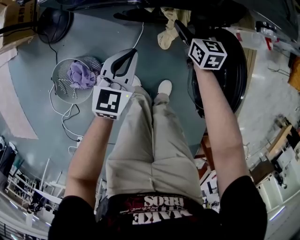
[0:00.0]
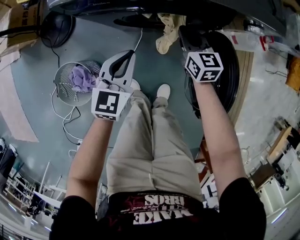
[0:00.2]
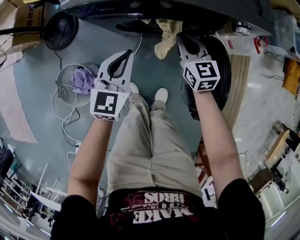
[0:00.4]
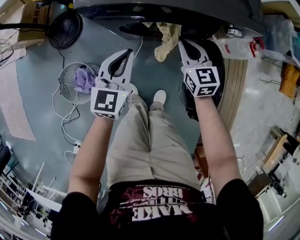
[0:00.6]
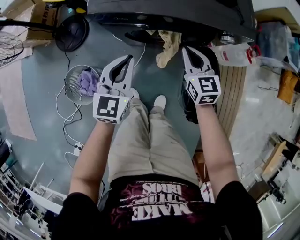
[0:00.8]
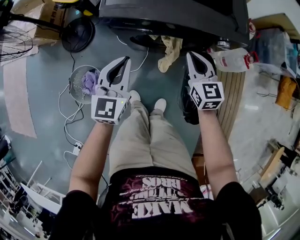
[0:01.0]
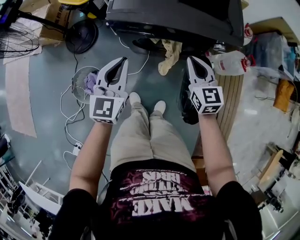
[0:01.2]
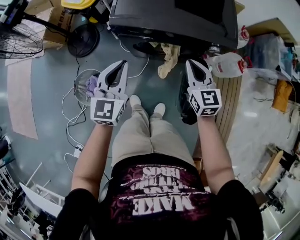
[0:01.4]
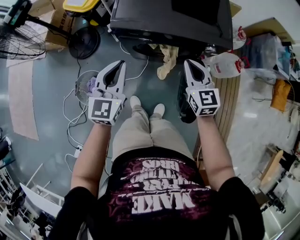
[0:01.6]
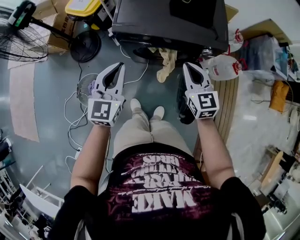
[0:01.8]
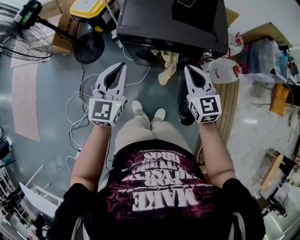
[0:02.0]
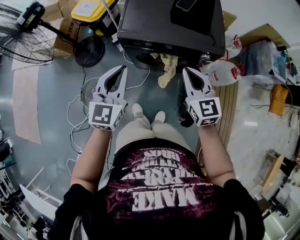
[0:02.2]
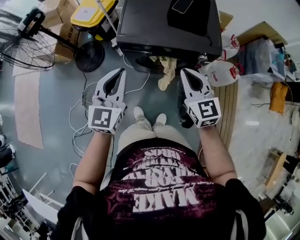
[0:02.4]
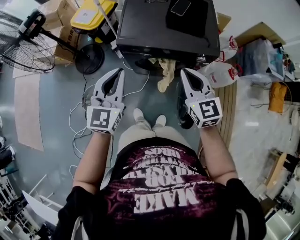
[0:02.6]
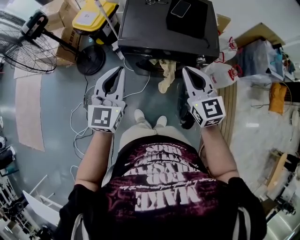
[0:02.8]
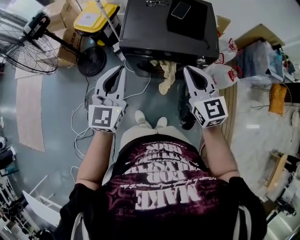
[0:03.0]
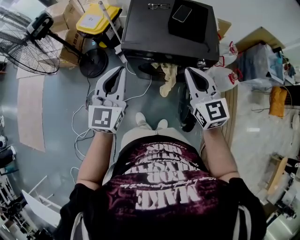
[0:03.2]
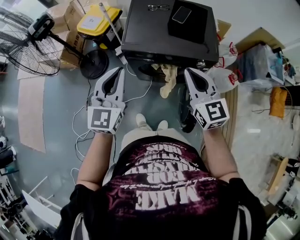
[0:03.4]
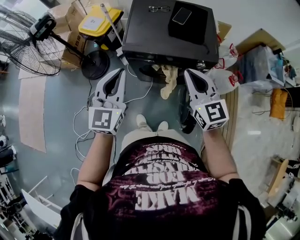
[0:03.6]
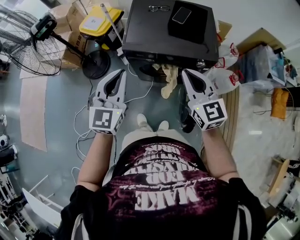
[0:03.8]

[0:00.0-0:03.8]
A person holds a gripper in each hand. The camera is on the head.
0:00.0 to 0:01.2: Both grippers travel together upward, some 25 cm. The right gripper changes its angle by some 20 degrees, and closes. Meanwhile the left gripper turns by approximately 20 degrees.
0:01.2 to 0:02.6: Both grippers move upward, some 20 cm.
0:02.6 to 0:03.8: The right gripper travels upward by some 5 cm.

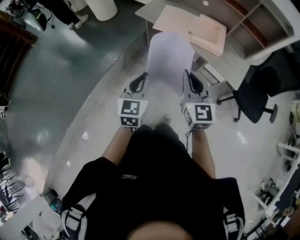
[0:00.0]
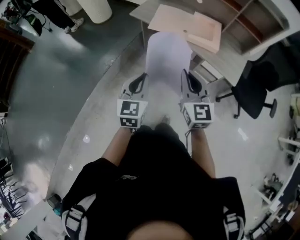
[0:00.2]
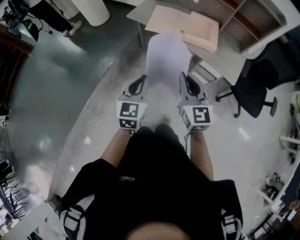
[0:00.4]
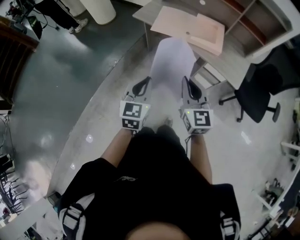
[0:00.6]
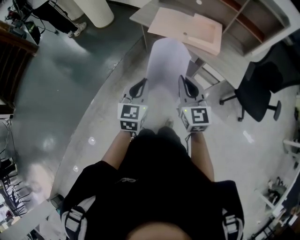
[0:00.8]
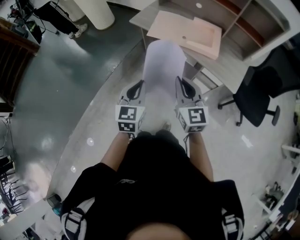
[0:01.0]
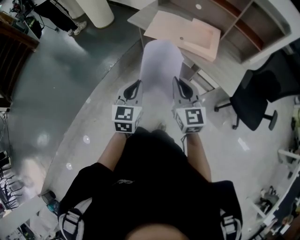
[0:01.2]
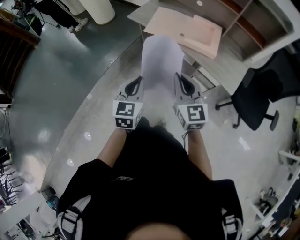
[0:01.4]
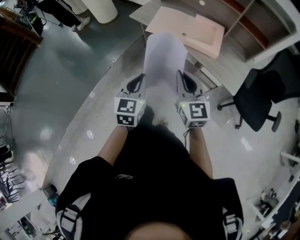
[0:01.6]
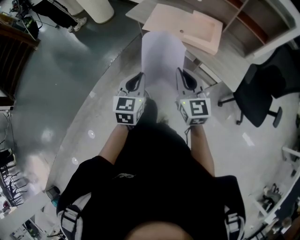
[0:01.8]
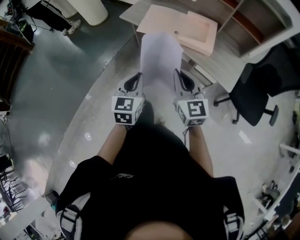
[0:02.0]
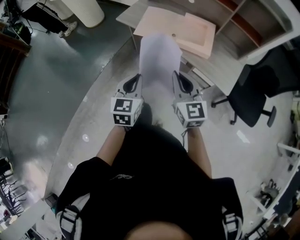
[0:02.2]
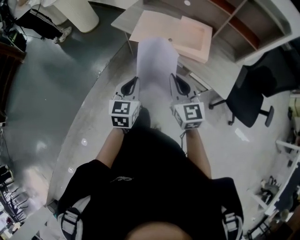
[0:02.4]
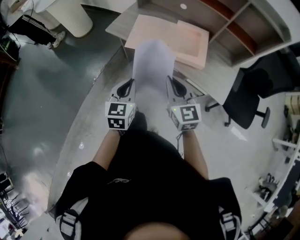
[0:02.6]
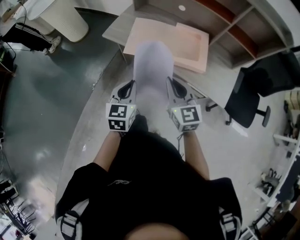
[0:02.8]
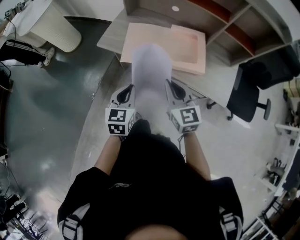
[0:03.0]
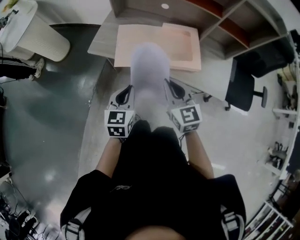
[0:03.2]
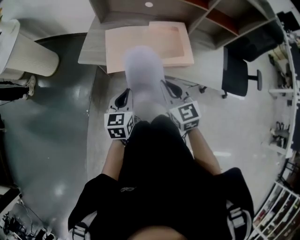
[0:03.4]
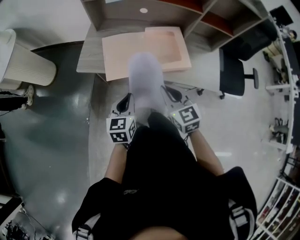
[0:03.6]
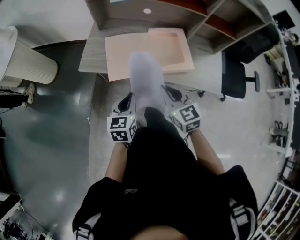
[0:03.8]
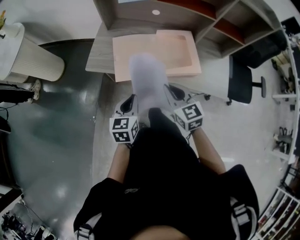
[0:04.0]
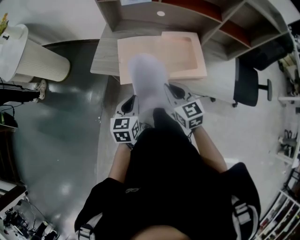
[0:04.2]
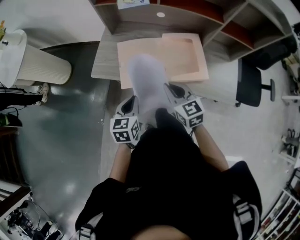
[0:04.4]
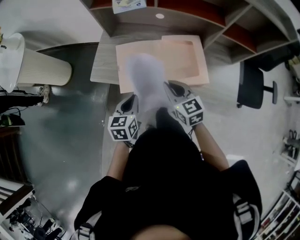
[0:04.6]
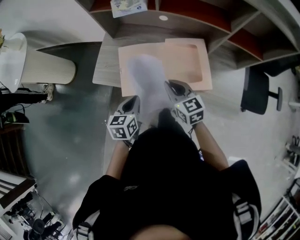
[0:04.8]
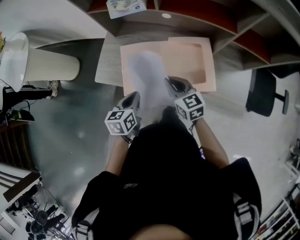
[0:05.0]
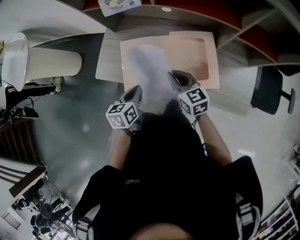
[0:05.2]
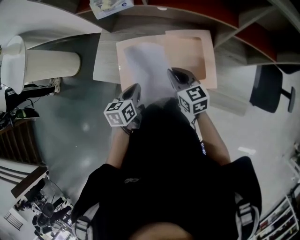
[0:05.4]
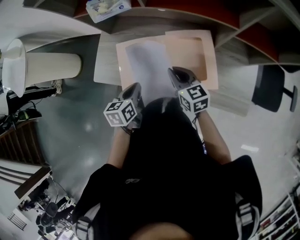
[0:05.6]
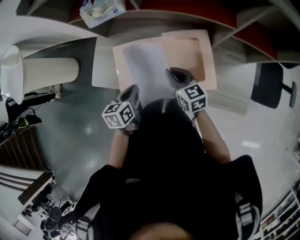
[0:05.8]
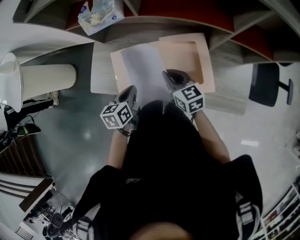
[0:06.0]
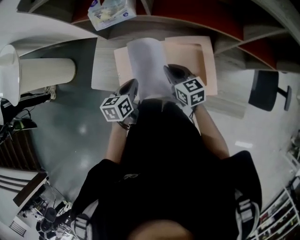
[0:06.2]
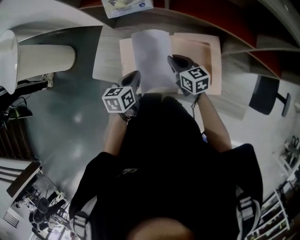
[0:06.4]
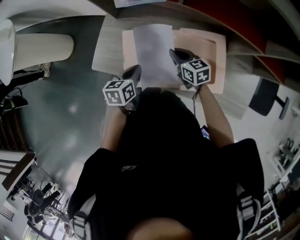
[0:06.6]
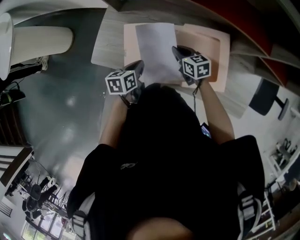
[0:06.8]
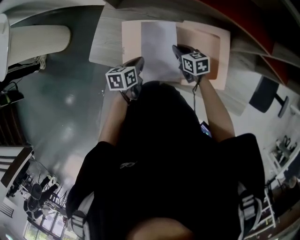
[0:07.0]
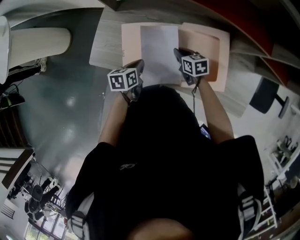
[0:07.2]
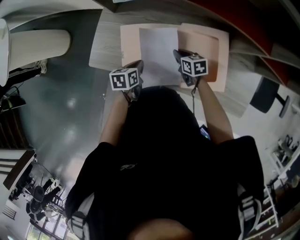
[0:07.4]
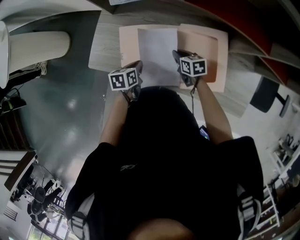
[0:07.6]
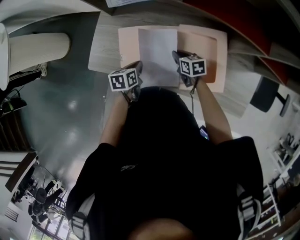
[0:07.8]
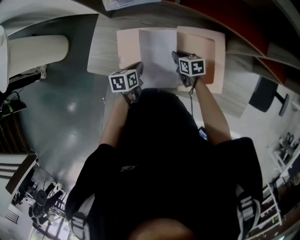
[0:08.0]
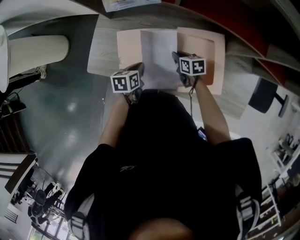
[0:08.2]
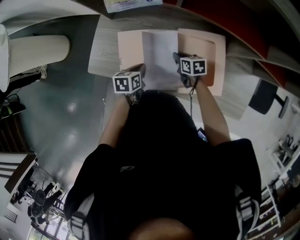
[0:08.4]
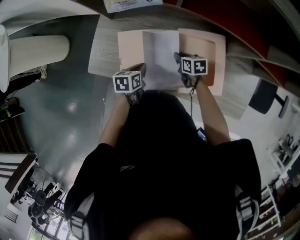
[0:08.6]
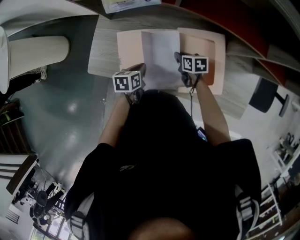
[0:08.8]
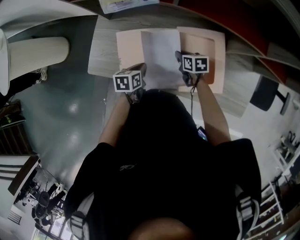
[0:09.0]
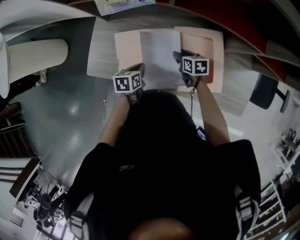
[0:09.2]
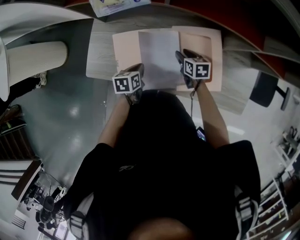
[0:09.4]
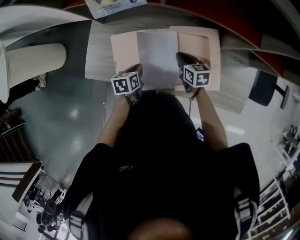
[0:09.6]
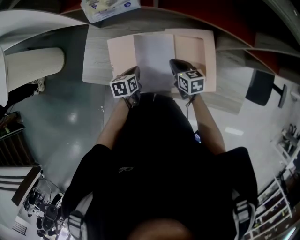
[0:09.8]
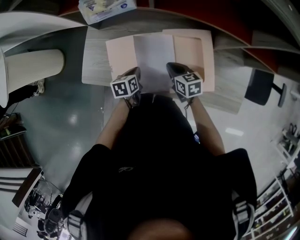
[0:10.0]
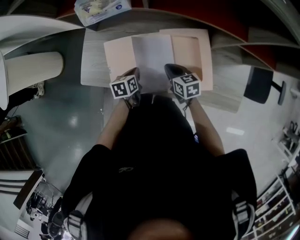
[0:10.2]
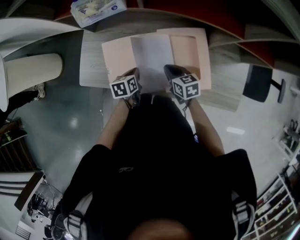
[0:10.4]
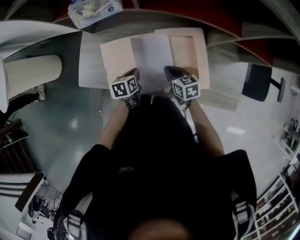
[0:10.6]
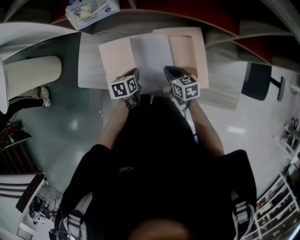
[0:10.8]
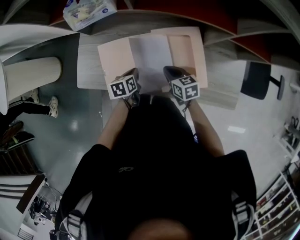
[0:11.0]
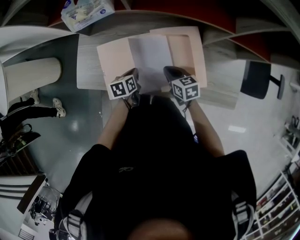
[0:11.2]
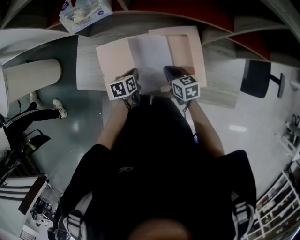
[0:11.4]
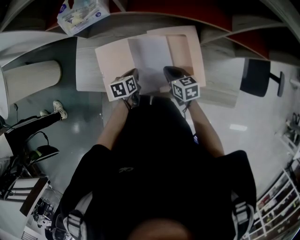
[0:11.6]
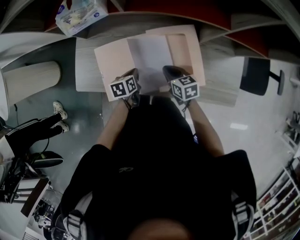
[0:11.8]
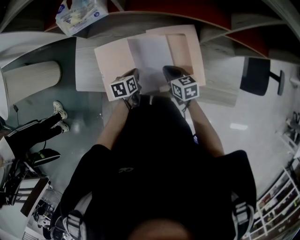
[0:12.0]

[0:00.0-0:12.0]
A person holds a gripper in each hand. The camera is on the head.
0:00.0 to 0:01.6: The grippers both shift to the right by roughly 10 cm.
0:01.6 to 0:03.0: The two grippers go roughly 20 cm forward.
0:03.0 to 0:04.4: The left gripper moves forward, roughly 10 cm, while the right gripper travels forward and downward by some 15 cm.
0:04.4 to 0:06.0: The right gripper travels forward, downward and to the right by roughly 20 cm. The left gripper travels forward by approximately 15 cm.
0:06.0 to 0:07.6: Both grippers travel together downward, approximately 15 cm. The right gripper rotates roughly 30 degrees.
0:07.6 to 0:09.0: The grippers stay close to where they were, moving slightly.
0:09.0 to 0:10.4: The right gripper moves upward and backward, approximately 10 cm, and opens, then closes again.
0:10.4 to 0:12.0: There are only small adjustments of the grippers.

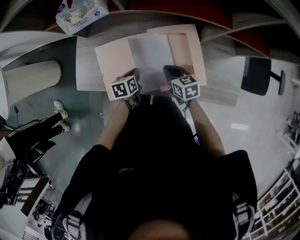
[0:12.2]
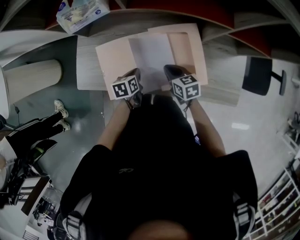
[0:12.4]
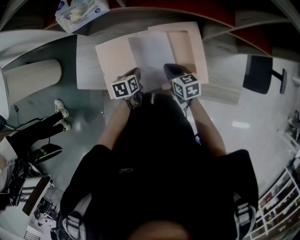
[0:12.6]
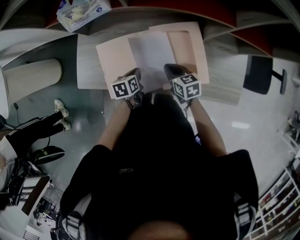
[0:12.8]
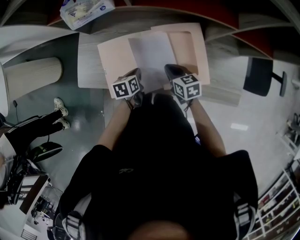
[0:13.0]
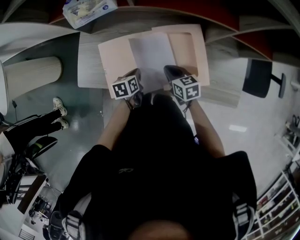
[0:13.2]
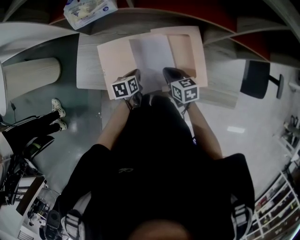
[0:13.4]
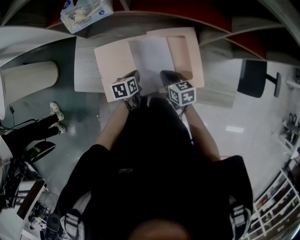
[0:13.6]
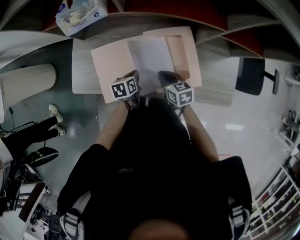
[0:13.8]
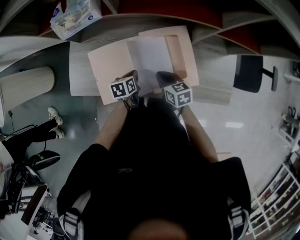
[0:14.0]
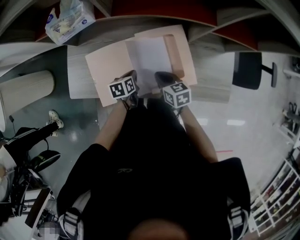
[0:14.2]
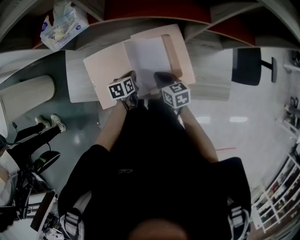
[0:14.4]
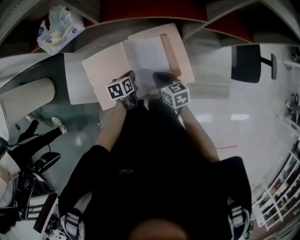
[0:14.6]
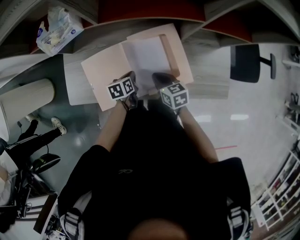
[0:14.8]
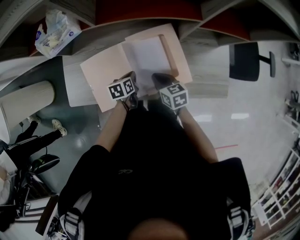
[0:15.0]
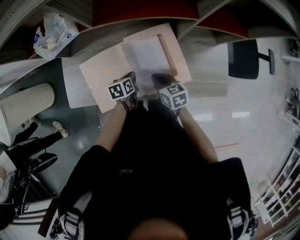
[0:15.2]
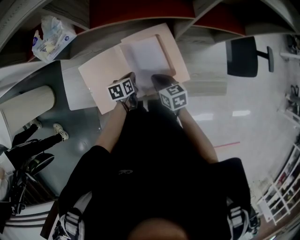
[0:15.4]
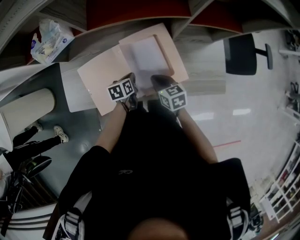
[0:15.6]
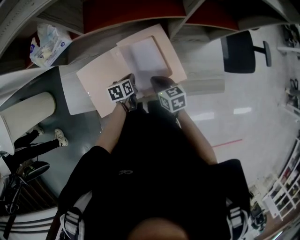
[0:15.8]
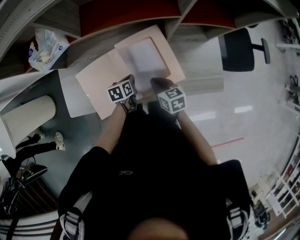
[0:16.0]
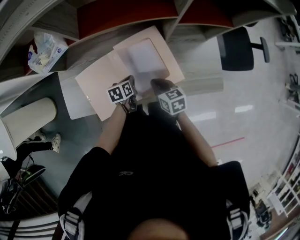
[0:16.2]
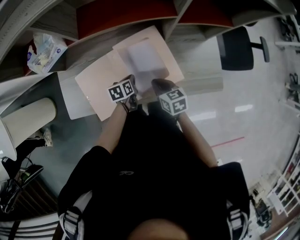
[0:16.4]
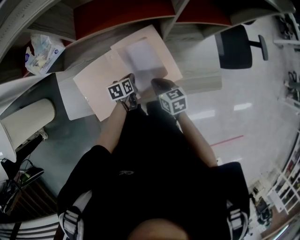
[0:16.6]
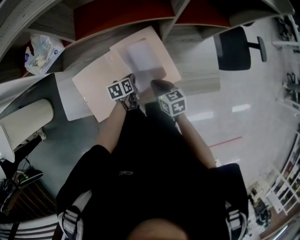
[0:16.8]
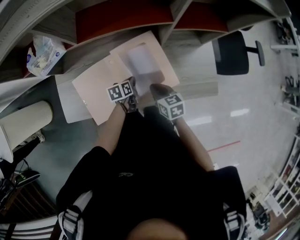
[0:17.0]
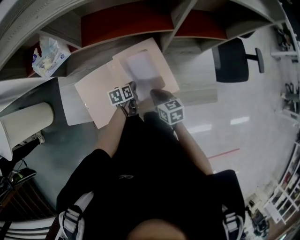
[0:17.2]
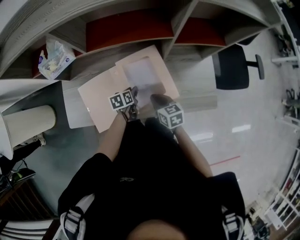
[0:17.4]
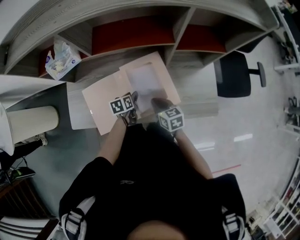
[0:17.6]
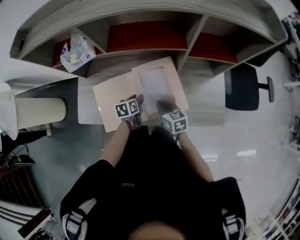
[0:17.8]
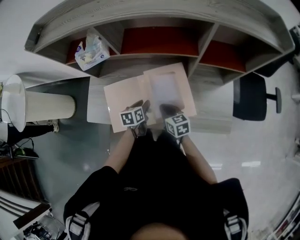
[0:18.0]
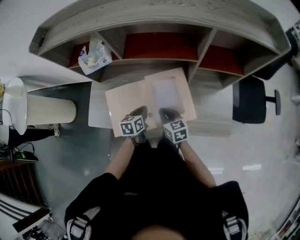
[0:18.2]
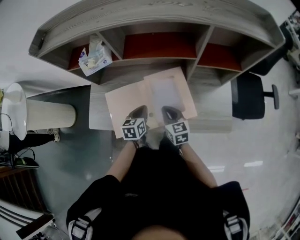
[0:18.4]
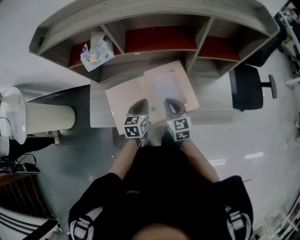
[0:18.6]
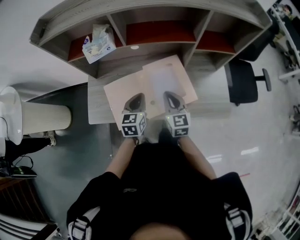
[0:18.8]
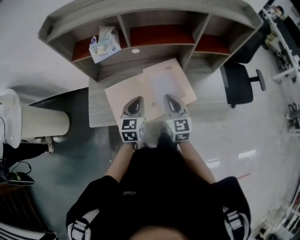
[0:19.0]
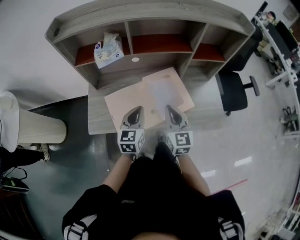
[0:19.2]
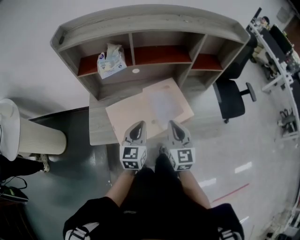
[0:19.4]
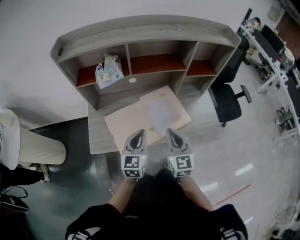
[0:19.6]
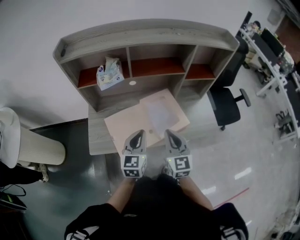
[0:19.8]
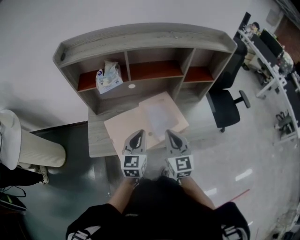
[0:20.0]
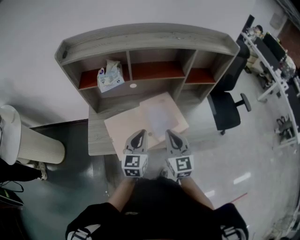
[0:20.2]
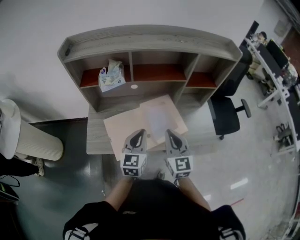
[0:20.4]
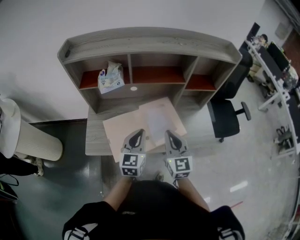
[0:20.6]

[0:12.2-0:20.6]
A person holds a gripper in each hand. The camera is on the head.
0:12.2 to 0:13.6: The grippers stay close to where they were, moving slightly.
0:13.6 to 0:15.0: The left gripper moves to the right, some 5 cm.
0:15.0 to 0:16.4: The grippers move only a little.
0:16.4 to 0:17.8: The left gripper shifts by some 5 cm, and opens up.
0:17.8 to 0:19.2: Both grippers travel together upward and backward, approximately 20 cm. The left gripper angles its fingers upward, by some 30 degrees, and closes its fingers, while the right gripper swivels roughly 40 degrees.
0:19.2 to 0:20.6: The grippers both shift upward by some 5 cm.
